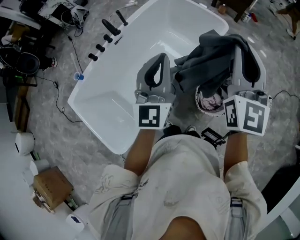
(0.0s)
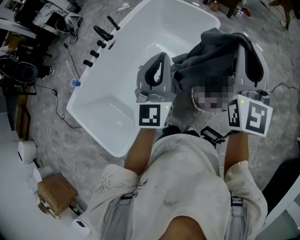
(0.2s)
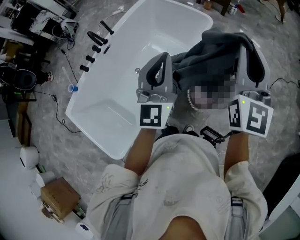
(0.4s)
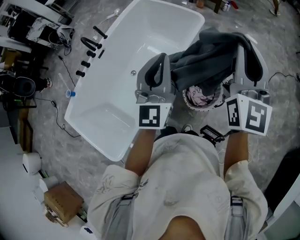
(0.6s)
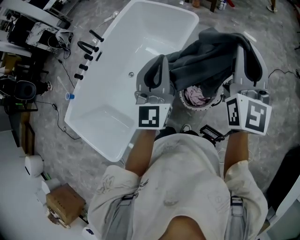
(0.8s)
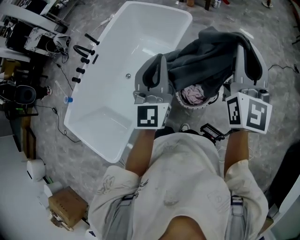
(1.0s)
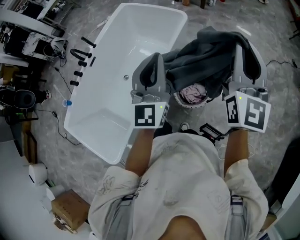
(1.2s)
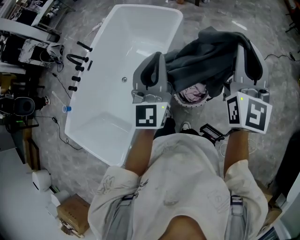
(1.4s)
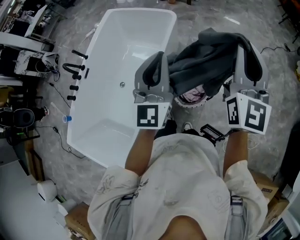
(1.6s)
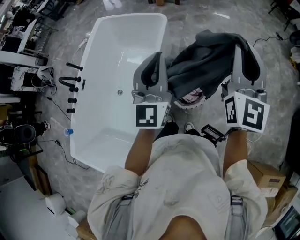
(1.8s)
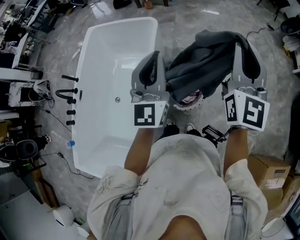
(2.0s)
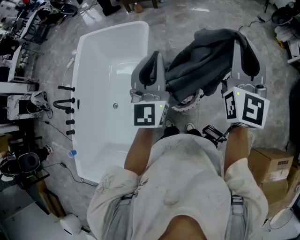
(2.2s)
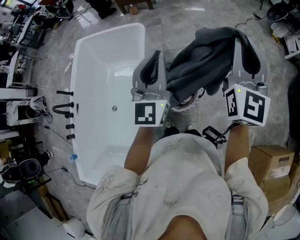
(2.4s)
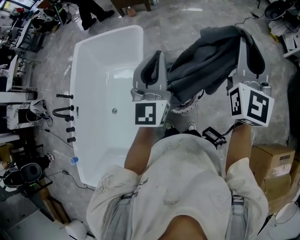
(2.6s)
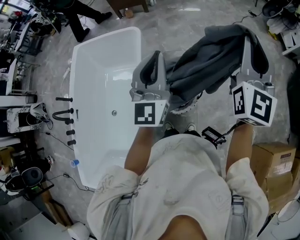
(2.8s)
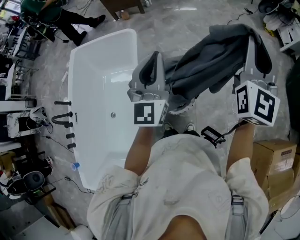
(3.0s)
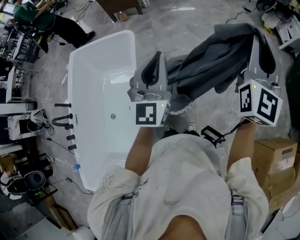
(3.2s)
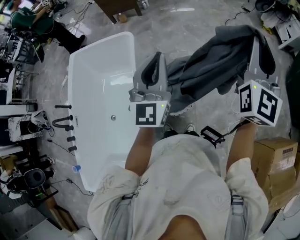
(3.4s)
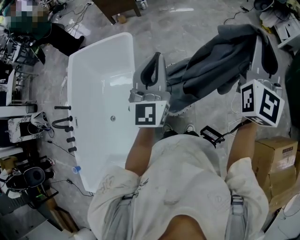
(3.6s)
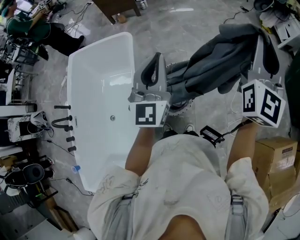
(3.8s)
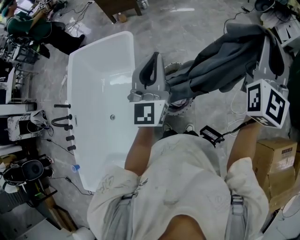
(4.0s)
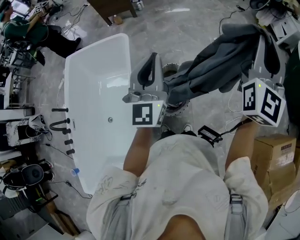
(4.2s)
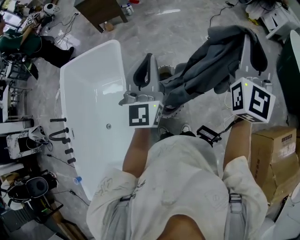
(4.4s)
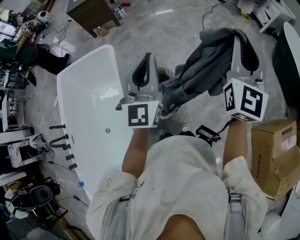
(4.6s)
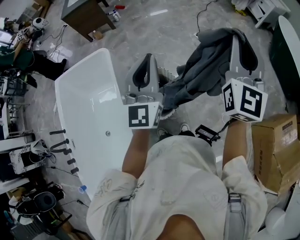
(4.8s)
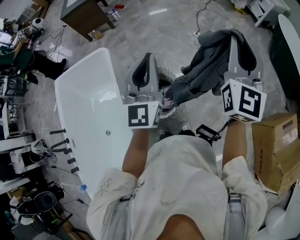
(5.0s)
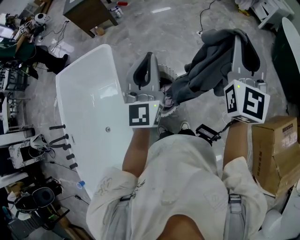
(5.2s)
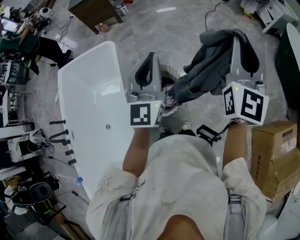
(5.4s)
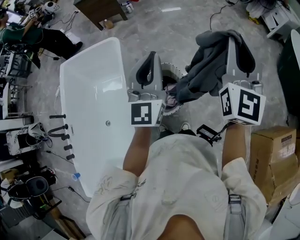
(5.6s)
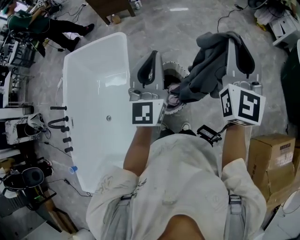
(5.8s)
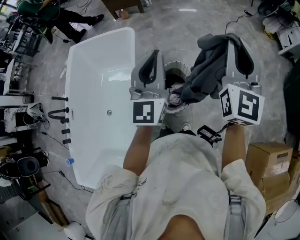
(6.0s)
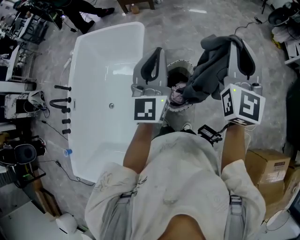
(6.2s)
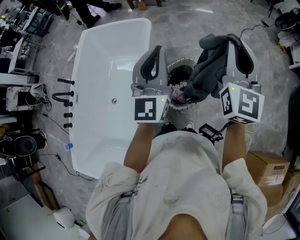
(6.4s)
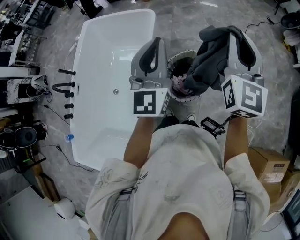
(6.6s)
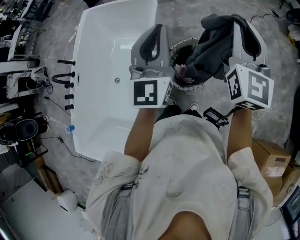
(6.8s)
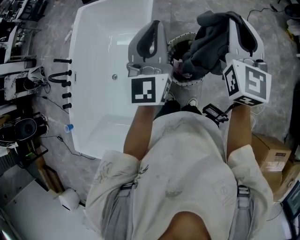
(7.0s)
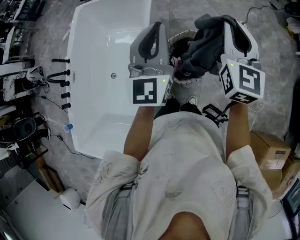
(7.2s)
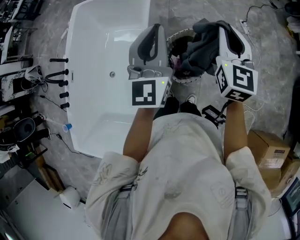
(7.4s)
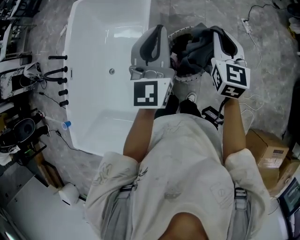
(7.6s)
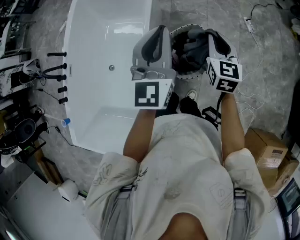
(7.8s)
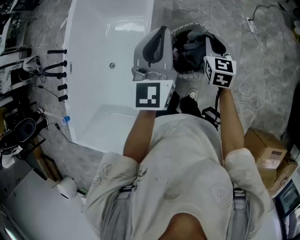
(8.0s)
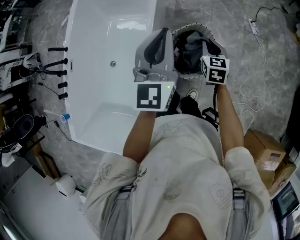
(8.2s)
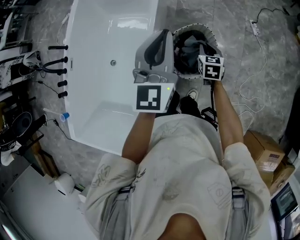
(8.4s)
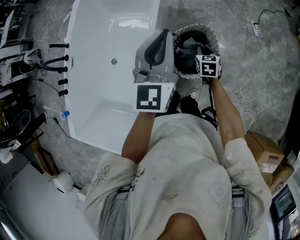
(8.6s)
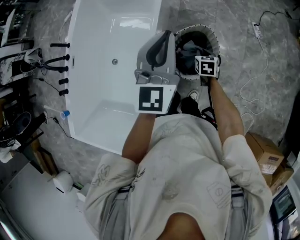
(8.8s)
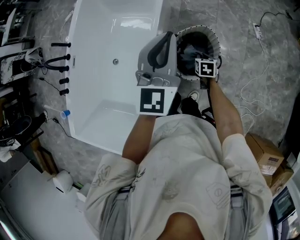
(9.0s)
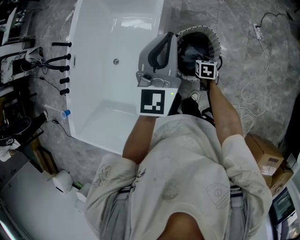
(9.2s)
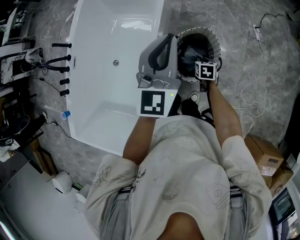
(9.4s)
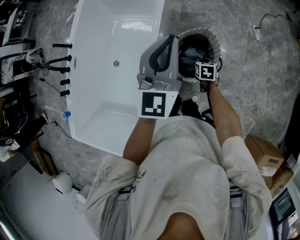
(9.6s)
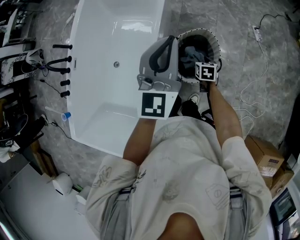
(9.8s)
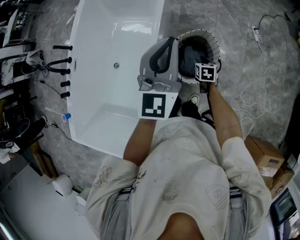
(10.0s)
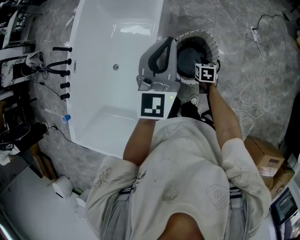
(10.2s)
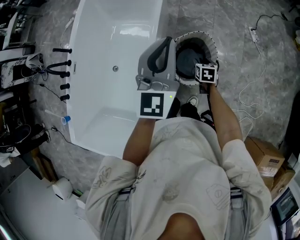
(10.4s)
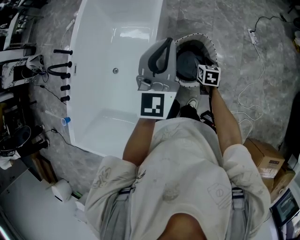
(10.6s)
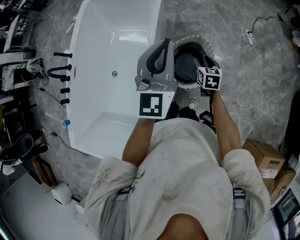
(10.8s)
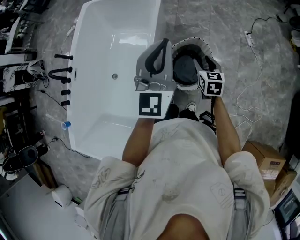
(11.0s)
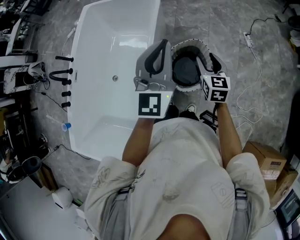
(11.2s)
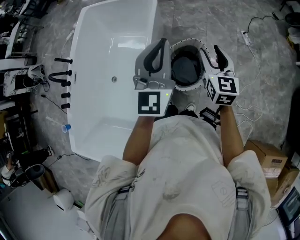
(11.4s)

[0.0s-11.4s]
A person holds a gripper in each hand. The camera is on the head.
0.0s to 1.4s: The grippers both shift to the right by about 25 cm.
1.4s to 2.8s: The right gripper moves approximately 10 cm, and rotates about 30 degrees. The left gripper changes place by some 10 cm, and swivels approximately 30 degrees.
2.8s to 4.2s: The right gripper shifts approximately 10 cm to the right.
4.2s to 5.6s: The left gripper is displaced to the right by roughly 5 cm.
5.6s to 7.2s: The left gripper is displaced to the left by roughly 15 cm. The right gripper goes about 20 cm to the left and downward, and swivels about 20 degrees.
7.2s to 8.6s: The right gripper is displaced downward by about 40 cm, and points its fingers some 40 degrees further downward, while the left gripper heads downward, covering some 5 cm.
8.6s to 10.0s: The right gripper goes approximately 5 cm downward.
10.0s to 11.4s: The right gripper shifts roughly 30 cm upward, and points its fingers approximately 40 degrees further upward.

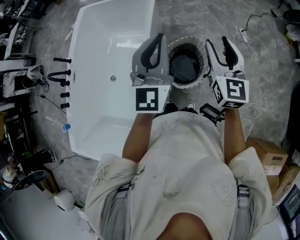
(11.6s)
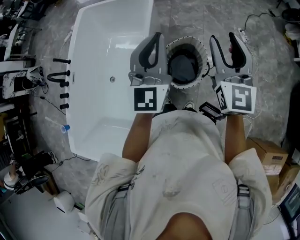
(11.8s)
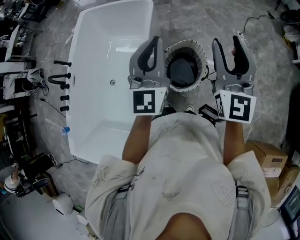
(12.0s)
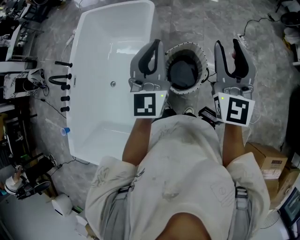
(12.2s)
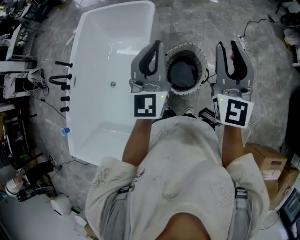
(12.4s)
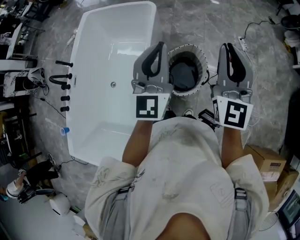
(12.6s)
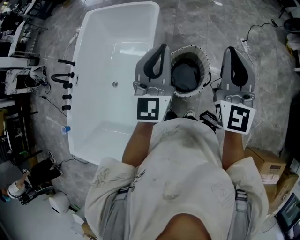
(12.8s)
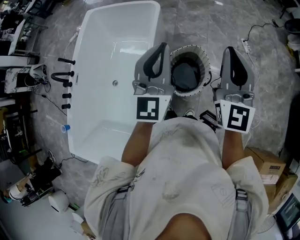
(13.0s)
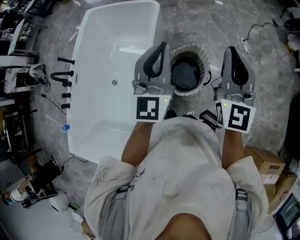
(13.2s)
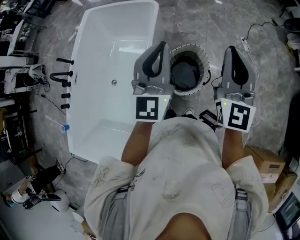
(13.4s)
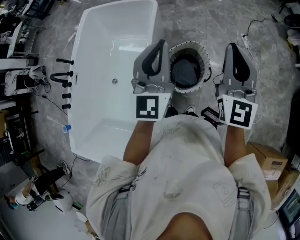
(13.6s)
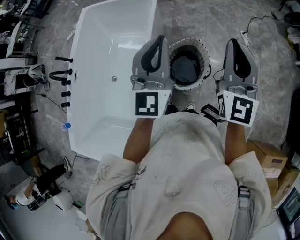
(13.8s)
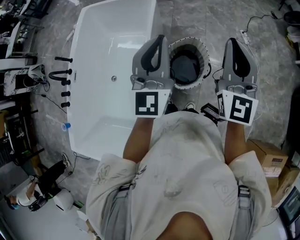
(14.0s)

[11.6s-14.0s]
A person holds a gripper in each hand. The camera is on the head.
11.6s to 12.8s: The right gripper is displaced upward by roughly 10 cm, and closes its fingers.
12.8s to 14.0s: The grippers make only small movements.

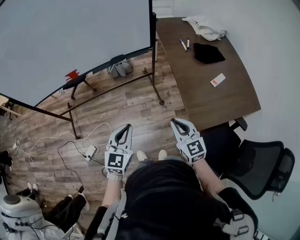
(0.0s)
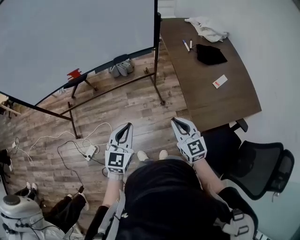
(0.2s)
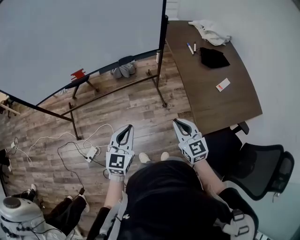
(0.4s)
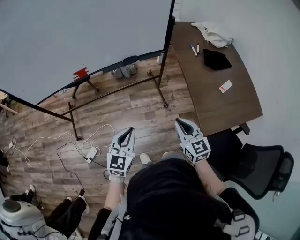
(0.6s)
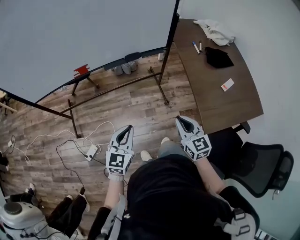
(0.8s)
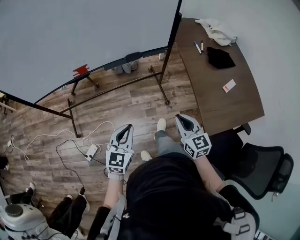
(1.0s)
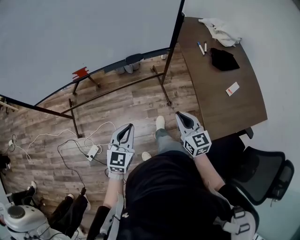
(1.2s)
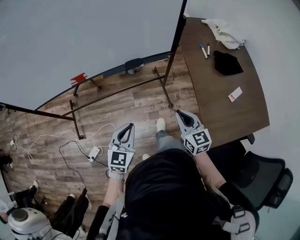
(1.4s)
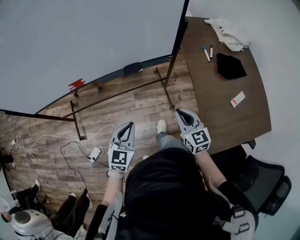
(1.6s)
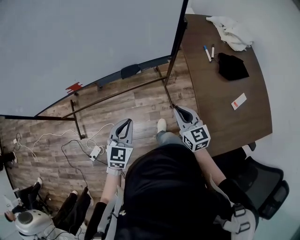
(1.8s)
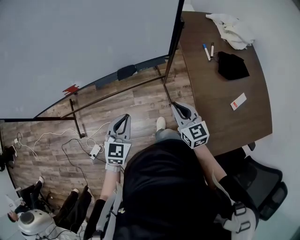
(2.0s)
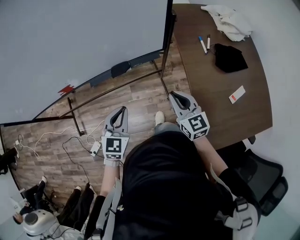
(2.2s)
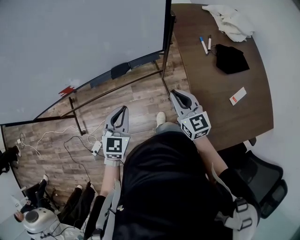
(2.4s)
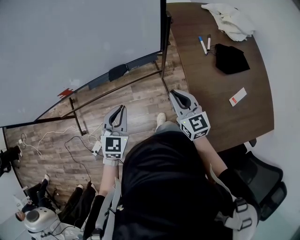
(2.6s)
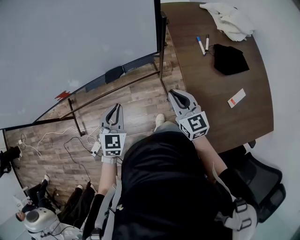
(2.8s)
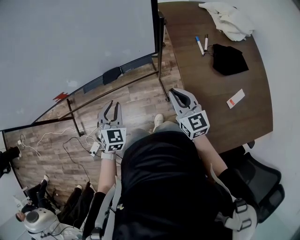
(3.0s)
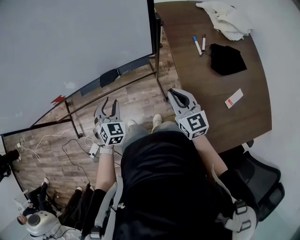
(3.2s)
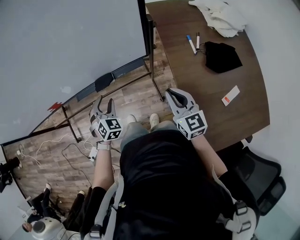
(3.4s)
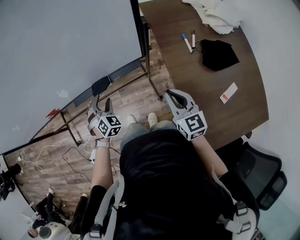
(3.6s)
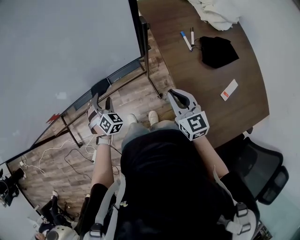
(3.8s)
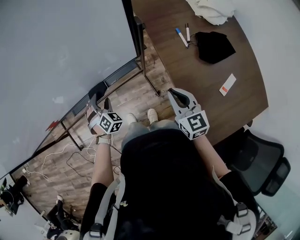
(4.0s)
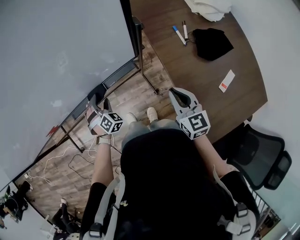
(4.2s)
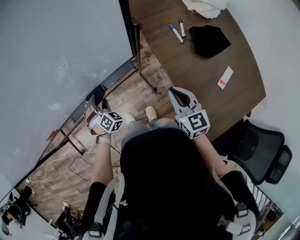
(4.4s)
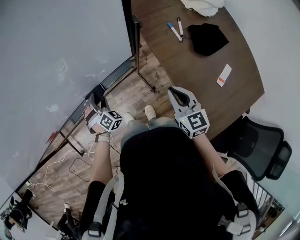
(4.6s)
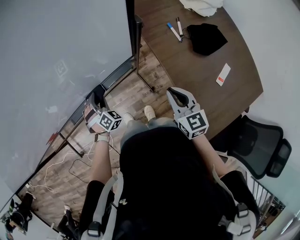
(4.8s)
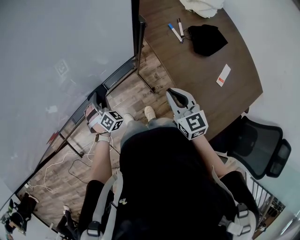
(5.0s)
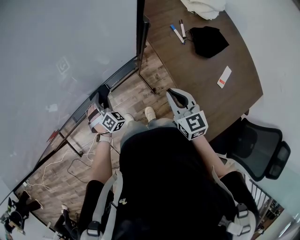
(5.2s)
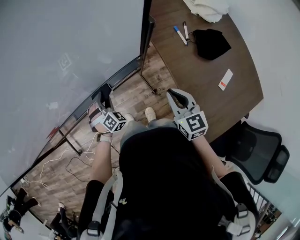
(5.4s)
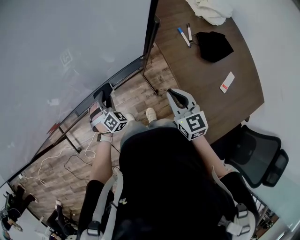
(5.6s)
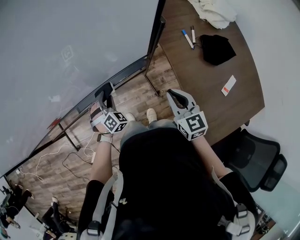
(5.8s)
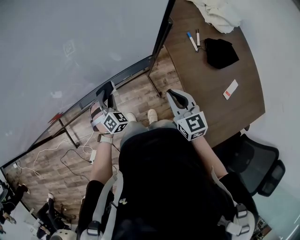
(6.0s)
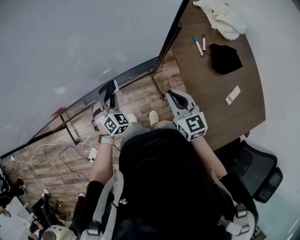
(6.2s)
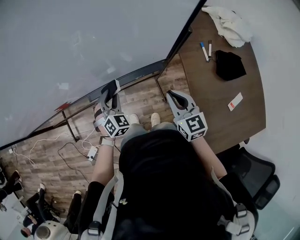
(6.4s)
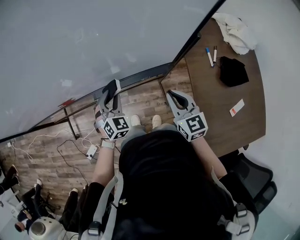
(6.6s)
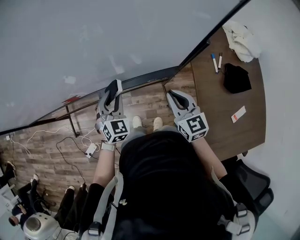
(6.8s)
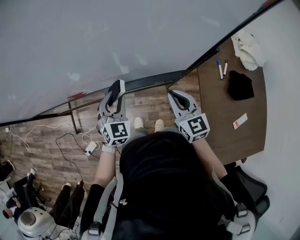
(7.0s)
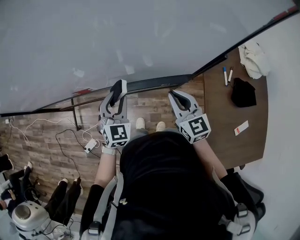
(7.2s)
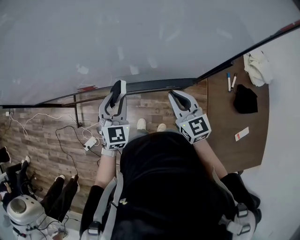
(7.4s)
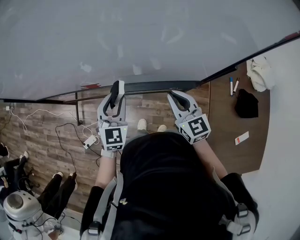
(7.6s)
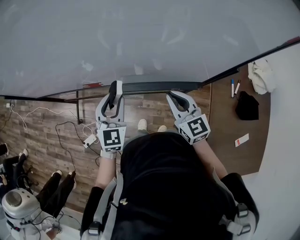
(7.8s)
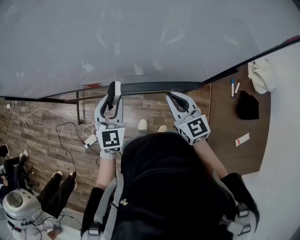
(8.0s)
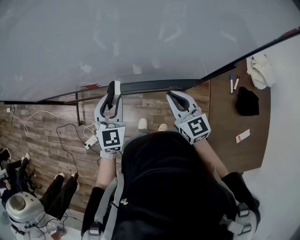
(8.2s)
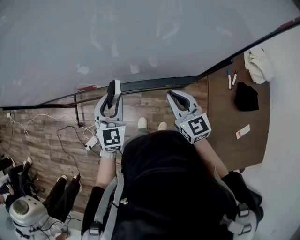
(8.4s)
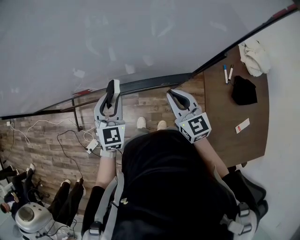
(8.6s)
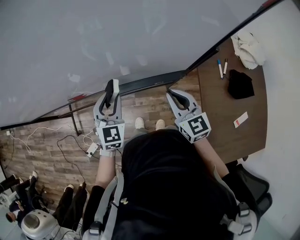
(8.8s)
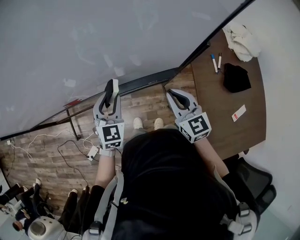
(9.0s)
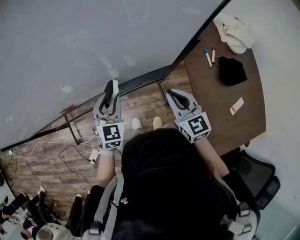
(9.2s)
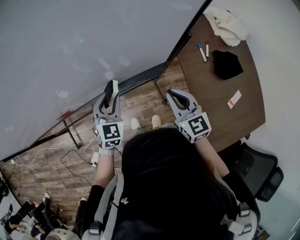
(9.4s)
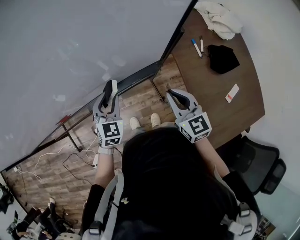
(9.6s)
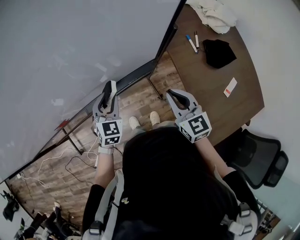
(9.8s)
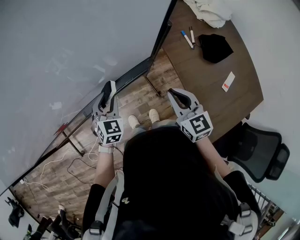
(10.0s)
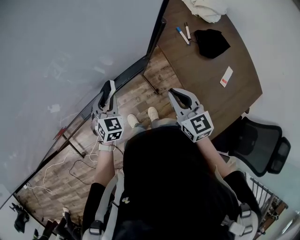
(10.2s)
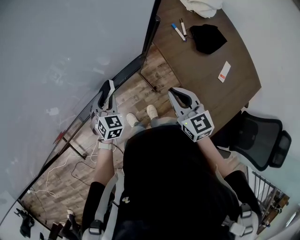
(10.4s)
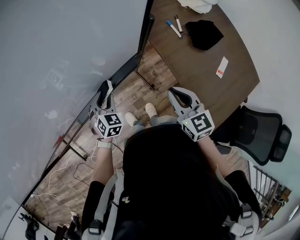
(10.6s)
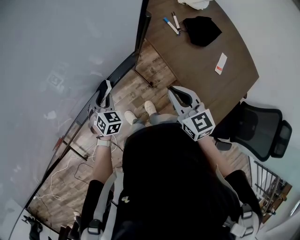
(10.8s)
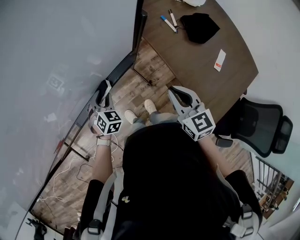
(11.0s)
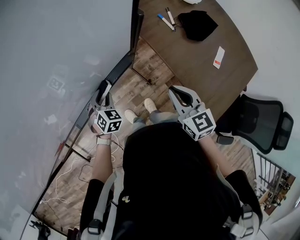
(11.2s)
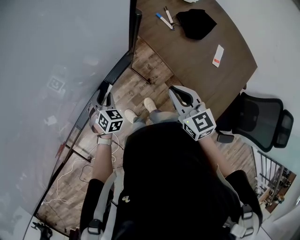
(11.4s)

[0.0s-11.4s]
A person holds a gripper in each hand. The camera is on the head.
0.0s to 1.4s: The grippers both shift forward and to the left by approximately 20 cm.
1.4s to 2.8s: Both grippers travel together forward and to the right, approximately 20 cm.
2.8s to 4.2s: The left gripper moves forward and downward, about 25 cm, rotates approximately 40 degrees, and opens; the right gripper is displaced to the right by some 5 cm.
4.2s to 5.6s: The right gripper is displaced to the left by some 5 cm.
5.6s to 7.2s: The left gripper is displaced upward and to the left by about 25 cm, and changes its angle by roughly 40 degrees; the right gripper is displaced to the left and forward by roughly 20 cm, and rotates about 30 degrees.
8.6s to 10.0s: The right gripper heads to the right and backward, covering some 15 cm, and turns by roughly 30 degrees; the left gripper moves to the right and downward, roughly 15 cm, and swivels roughly 30 degrees.
10.0s to 11.4s: The right gripper moves to the right, about 5 cm, while the left gripper goes some 10 cm downward, and changes its angle by approximately 20 degrees.
